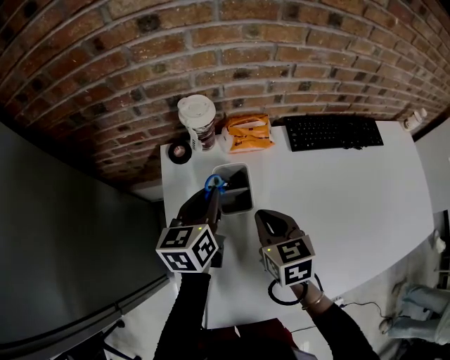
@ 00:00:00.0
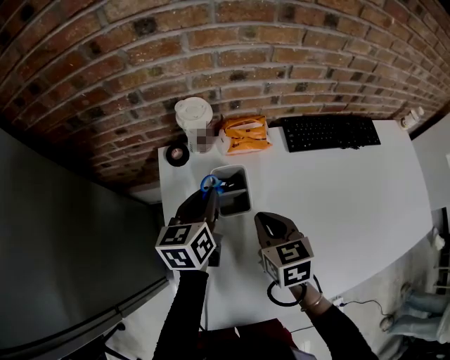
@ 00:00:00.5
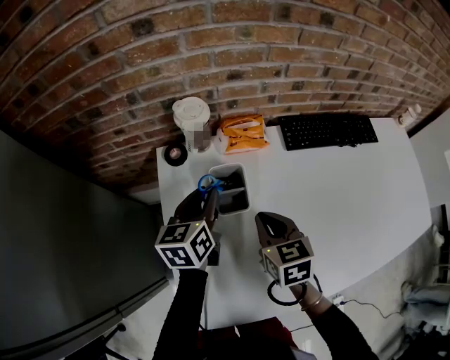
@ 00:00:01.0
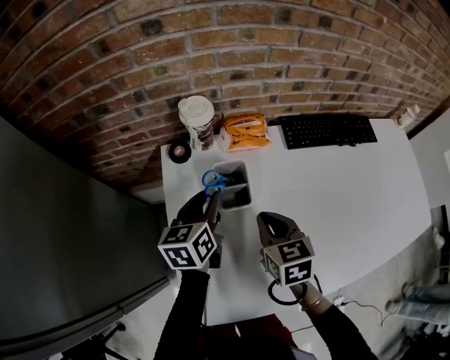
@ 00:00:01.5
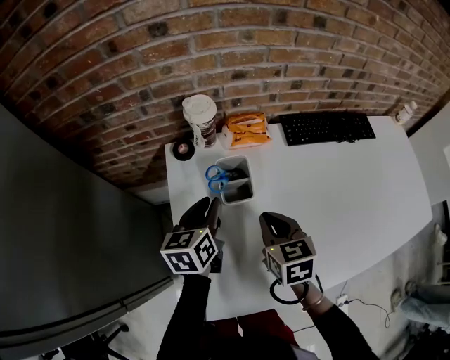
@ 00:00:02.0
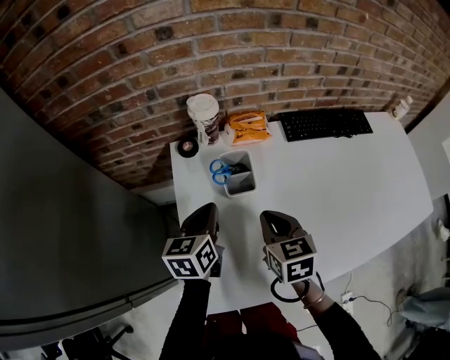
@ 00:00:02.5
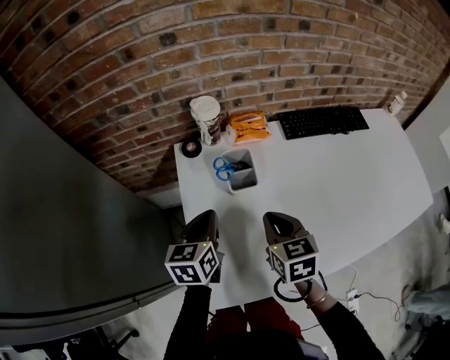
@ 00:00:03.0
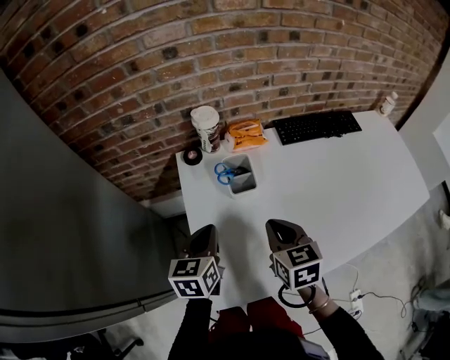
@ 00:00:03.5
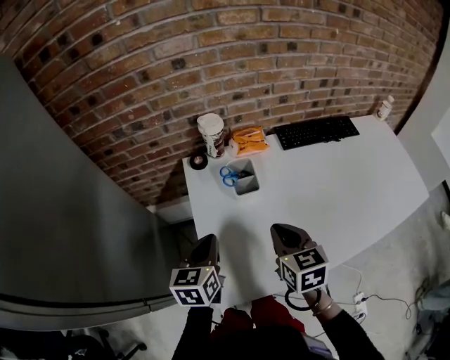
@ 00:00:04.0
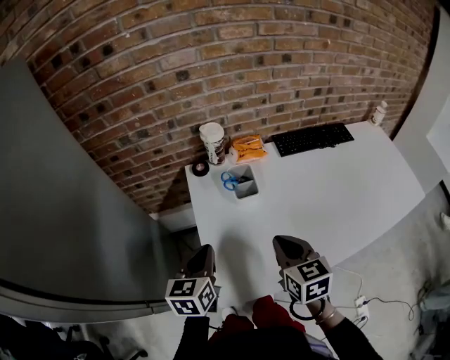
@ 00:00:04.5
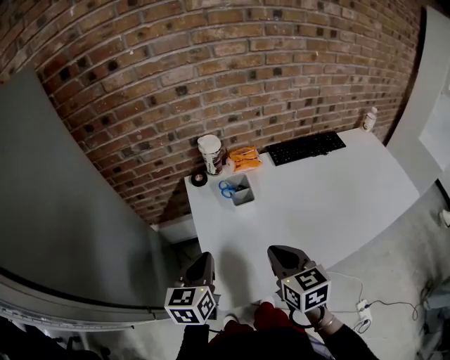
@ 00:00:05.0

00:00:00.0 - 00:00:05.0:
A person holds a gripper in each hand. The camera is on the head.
00:00:00.0 - 00:00:02.5: The two grippers go about 10 cm backward. The left gripper opens, then closes again.
00:00:02.5 - 00:00:05.0: The grippers both shift backward and upward by some 15 cm.

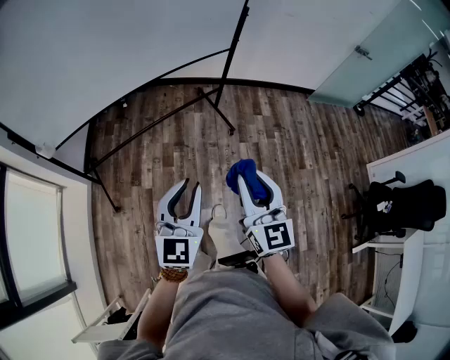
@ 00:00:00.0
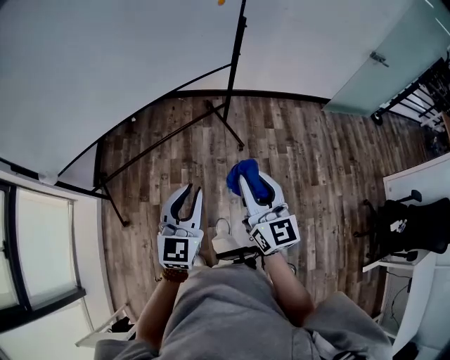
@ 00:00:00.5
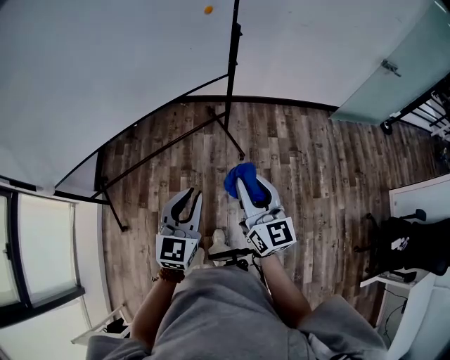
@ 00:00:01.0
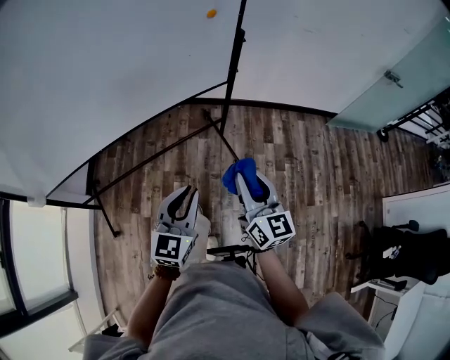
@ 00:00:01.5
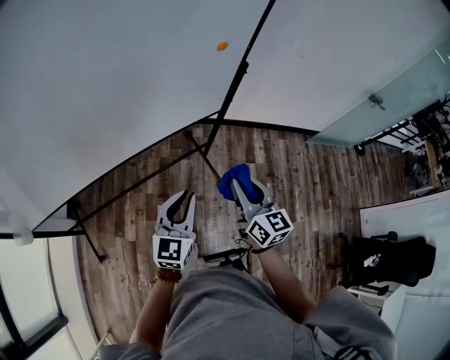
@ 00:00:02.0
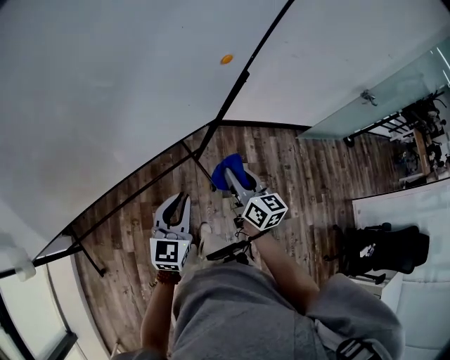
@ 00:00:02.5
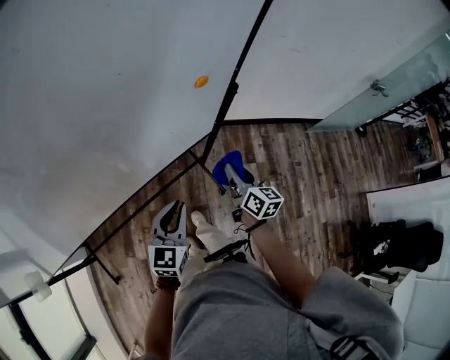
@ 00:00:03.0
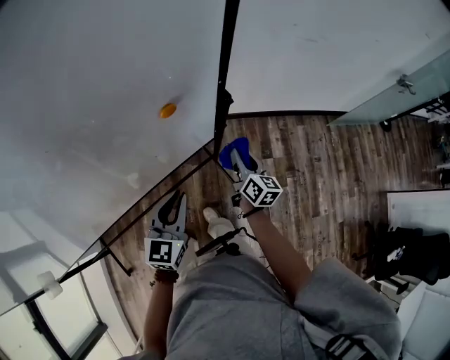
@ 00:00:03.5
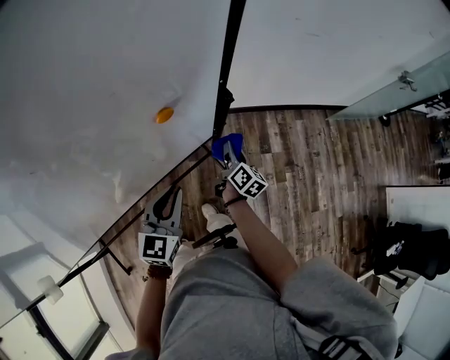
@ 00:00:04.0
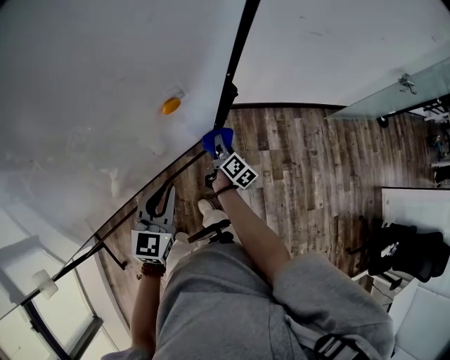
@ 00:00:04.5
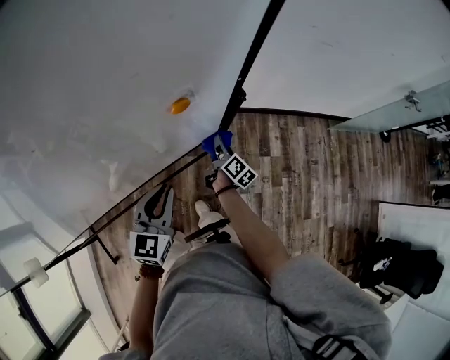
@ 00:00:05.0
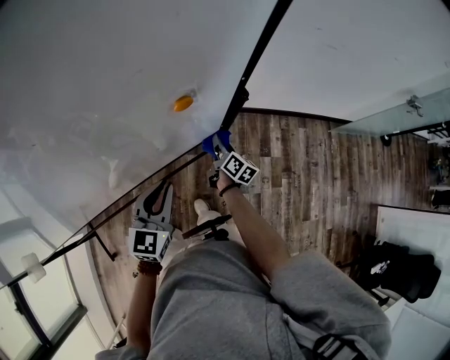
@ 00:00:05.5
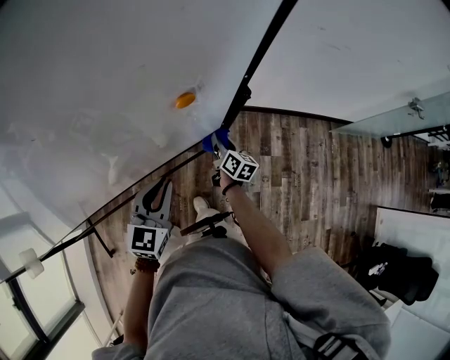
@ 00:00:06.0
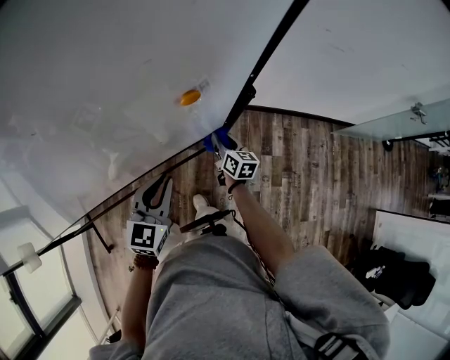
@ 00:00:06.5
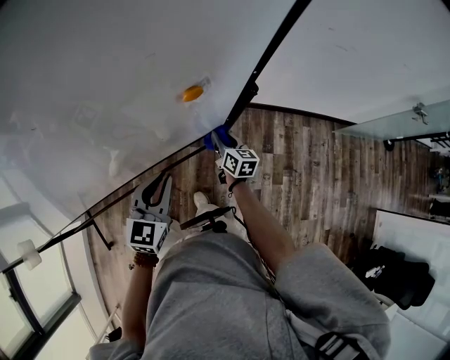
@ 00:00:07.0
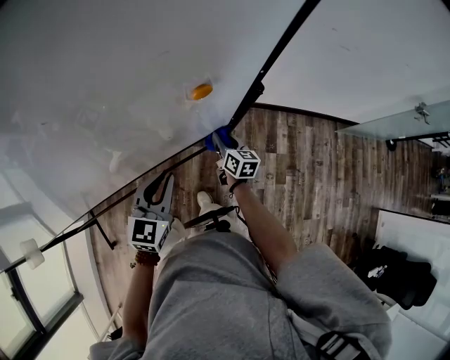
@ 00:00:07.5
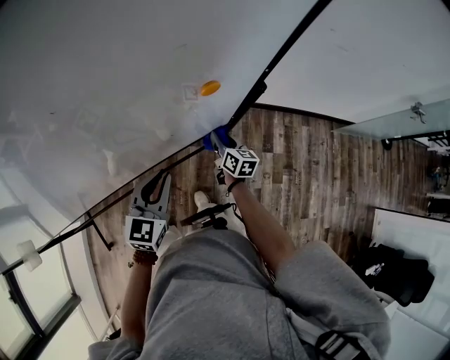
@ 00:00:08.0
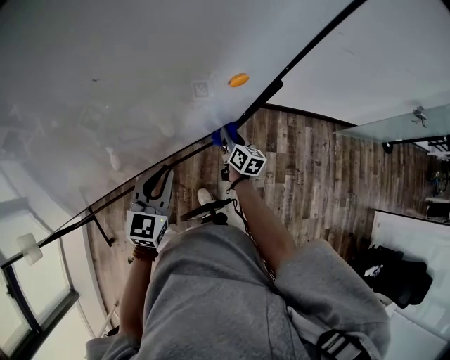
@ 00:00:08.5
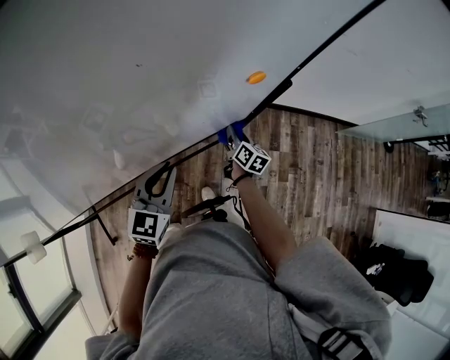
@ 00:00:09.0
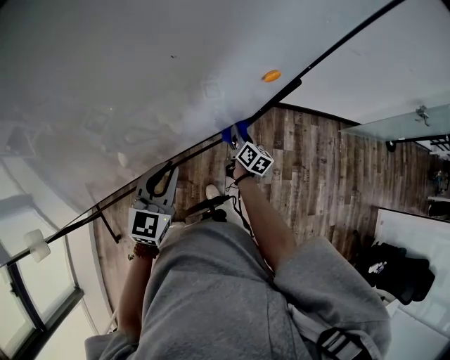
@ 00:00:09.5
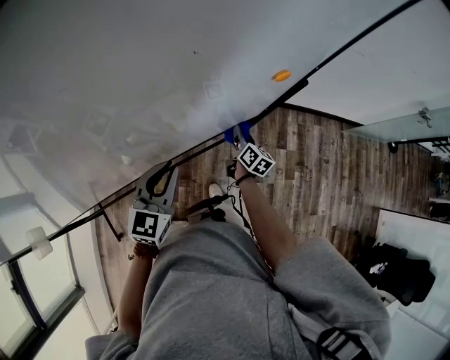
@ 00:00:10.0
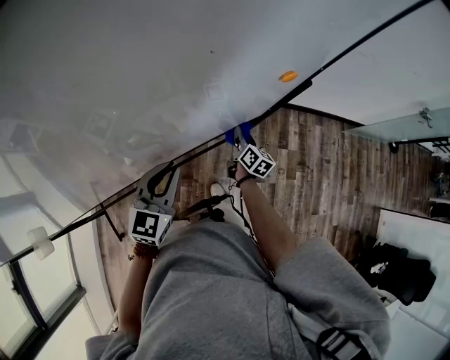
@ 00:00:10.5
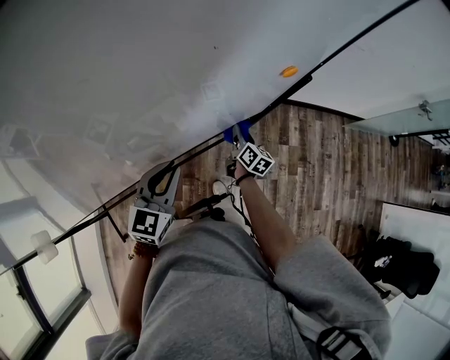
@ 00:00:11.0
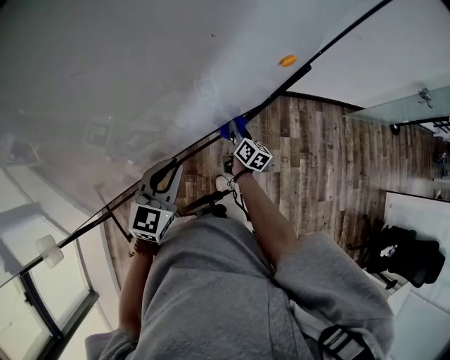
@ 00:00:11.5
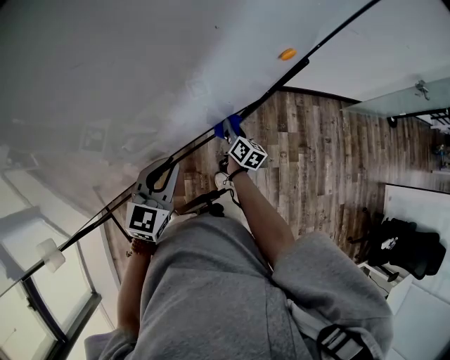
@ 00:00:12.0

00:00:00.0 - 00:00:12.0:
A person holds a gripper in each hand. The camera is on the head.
00:00:00.0 - 00:00:02.0: Both grippers are carried forward, some 50 cm. The right gripper swivels approximately 20 degrees.
00:00:02.0 - 00:00:04.0: The right gripper is displaced forward and downward by approximately 40 cm, and turns by some 50 degrees. The left gripper travels forward by approximately 30 cm.
00:00:04.0 - 00:00:06.0: The right gripper travels to the left by about 5 cm, and rotates approximately 20 degrees.
00:00:06.0 - 00:00:08.0: There are only small adjustments of the grippers.
00:00:08.0 - 00:00:10.0: The left gripper heads to the left, covering some 10 cm.
00:00:10.0 - 00:00:12.0: The right gripper changes place by roughly 5 cm.

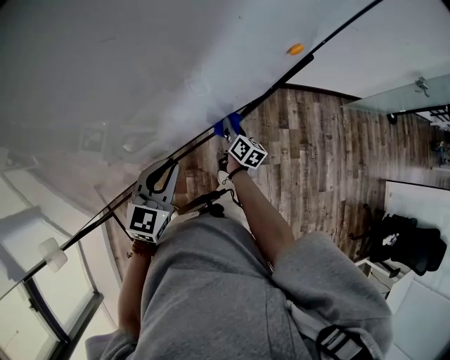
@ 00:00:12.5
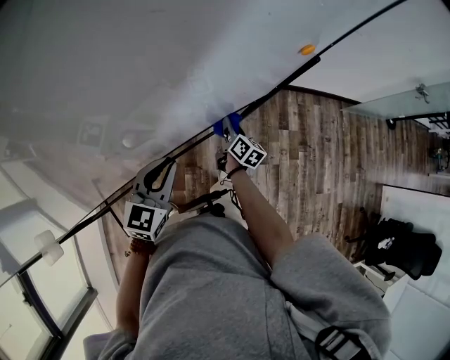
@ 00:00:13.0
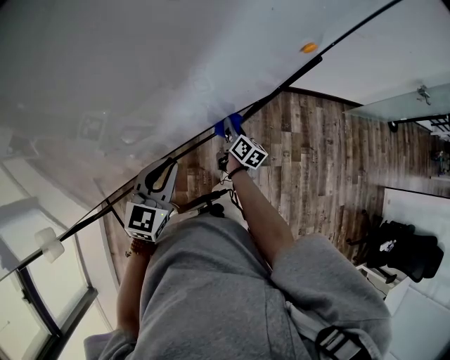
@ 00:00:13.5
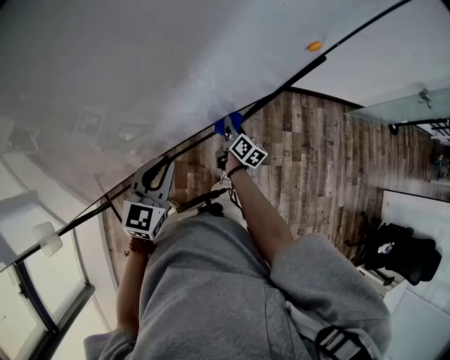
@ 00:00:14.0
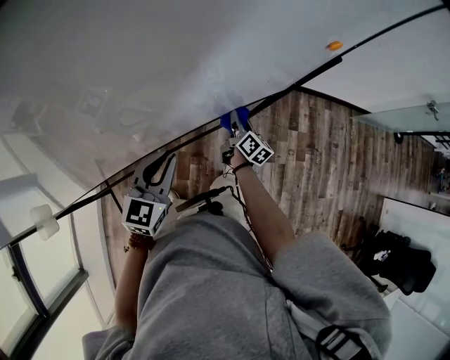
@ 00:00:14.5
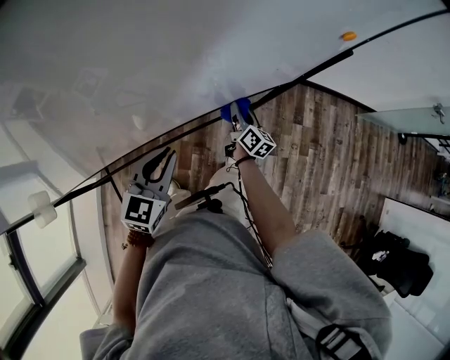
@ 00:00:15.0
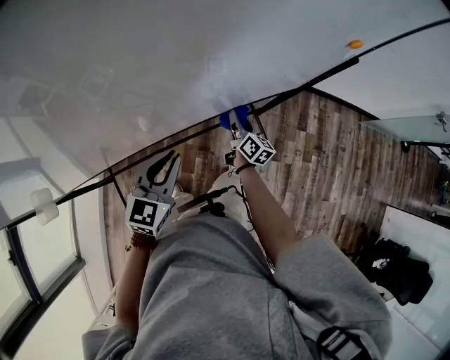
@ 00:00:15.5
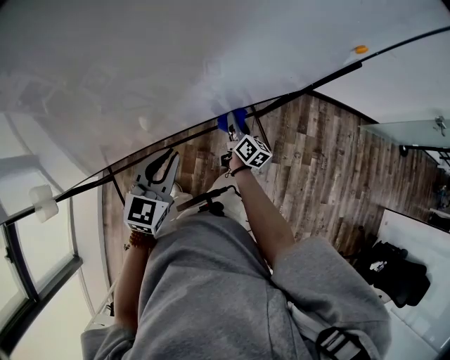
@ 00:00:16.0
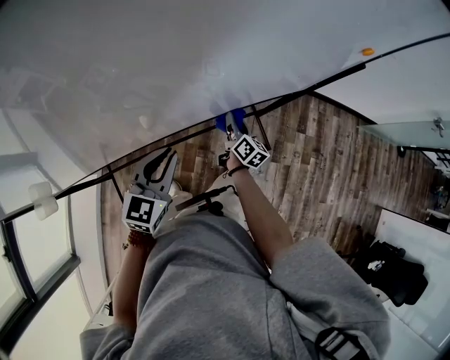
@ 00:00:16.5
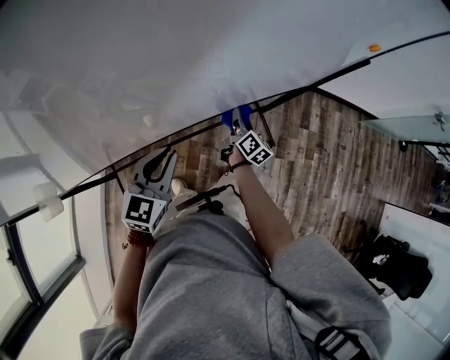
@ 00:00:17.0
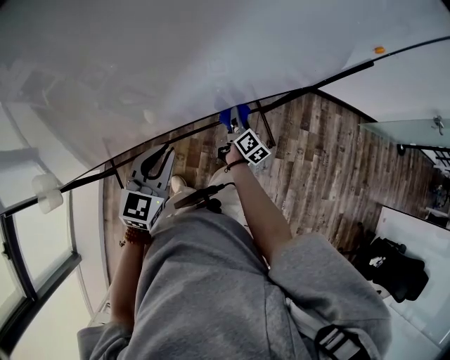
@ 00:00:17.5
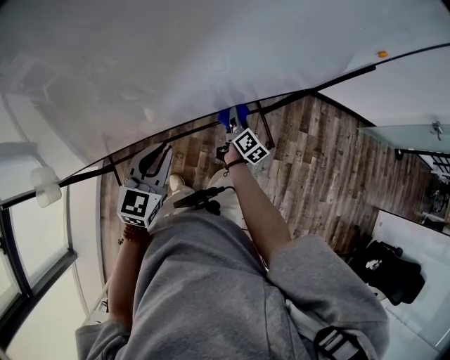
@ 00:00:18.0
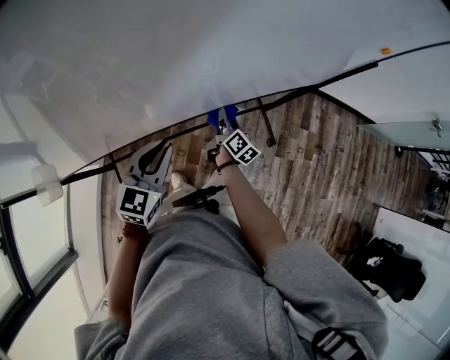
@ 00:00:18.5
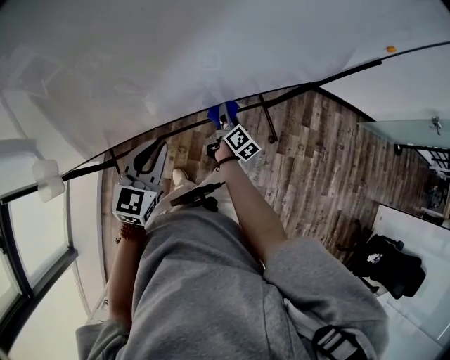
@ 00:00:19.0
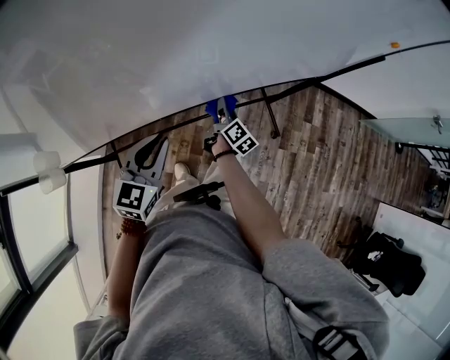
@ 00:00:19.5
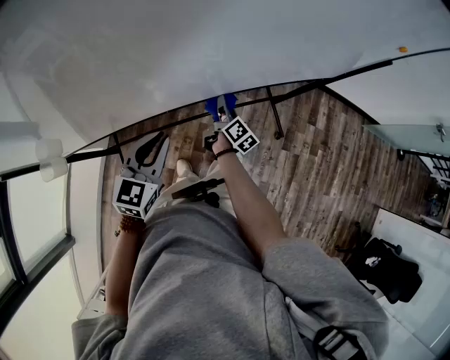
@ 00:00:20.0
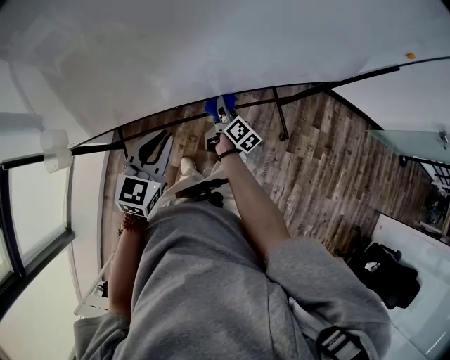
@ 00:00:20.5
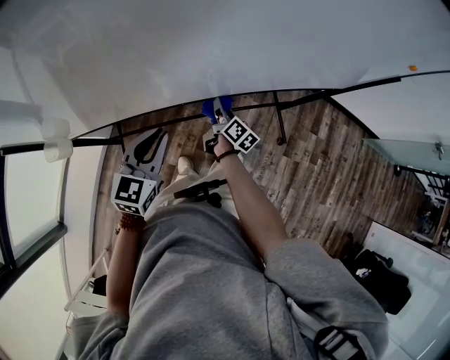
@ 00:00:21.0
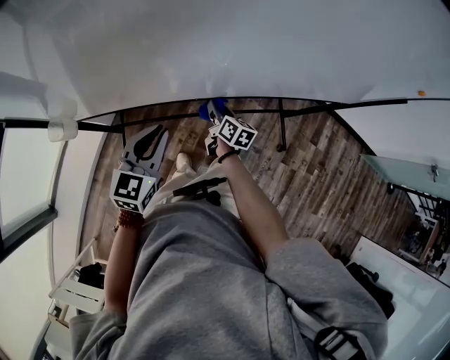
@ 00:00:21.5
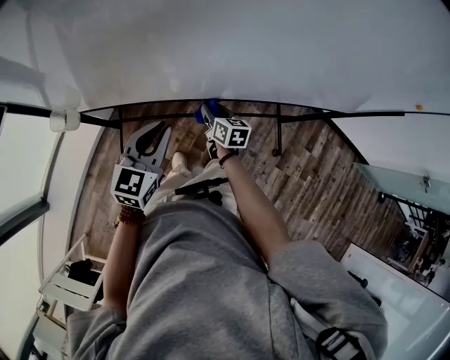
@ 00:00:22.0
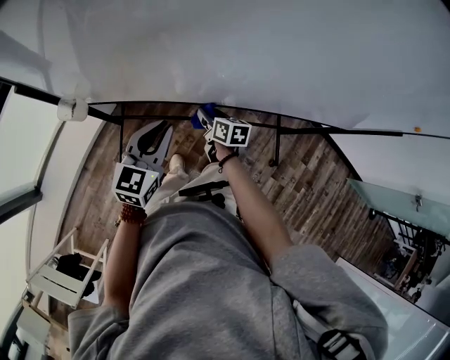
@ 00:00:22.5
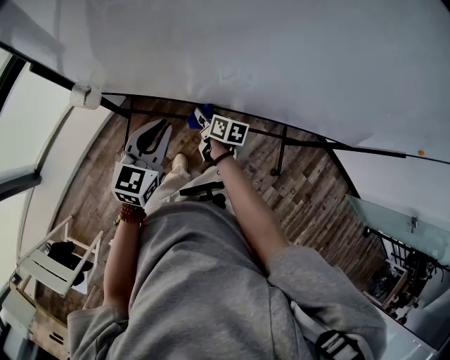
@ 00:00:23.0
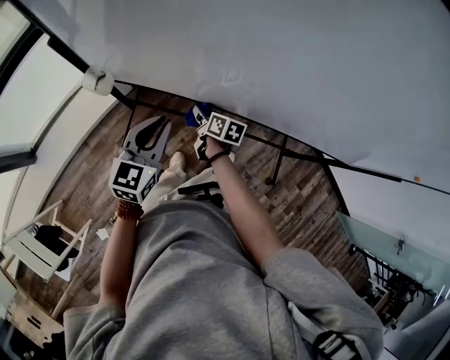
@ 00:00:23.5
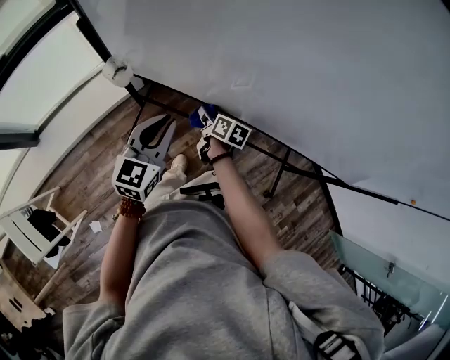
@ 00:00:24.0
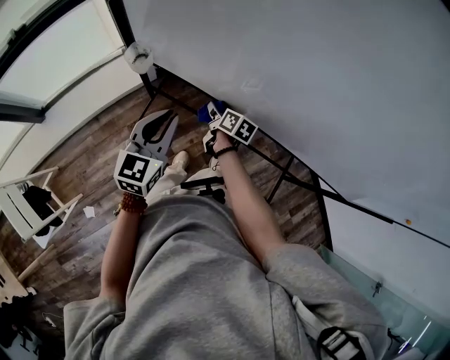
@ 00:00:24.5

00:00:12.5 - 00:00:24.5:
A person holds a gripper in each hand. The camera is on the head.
00:00:12.5 - 00:00:14.5: The left gripper heads backward and to the left, covering about 10 cm. The right gripper moves about 5 cm.
00:00:14.5 - 00:00:16.5: The left gripper is displaced to the left by about 5 cm. Meanwhile the right gripper is displaced to the left by approximately 10 cm.
00:00:16.5 - 00:00:18.5: Both grippers travel together to the left and backward, some 10 cm.
00:00:18.5 - 00:00:20.5: The right gripper heads to the left, covering roughly 10 cm; the left gripper goes roughly 10 cm to the left and backward.
00:00:20.5 - 00:00:22.5: The right gripper changes place by some 20 cm, and changes its angle by roughly 50 degrees; the left gripper moves approximately 10 cm.
00:00:22.5 - 00:00:24.5: Both grippers travel together to the left, approximately 15 cm. The left gripper turns by about 30 degrees.
